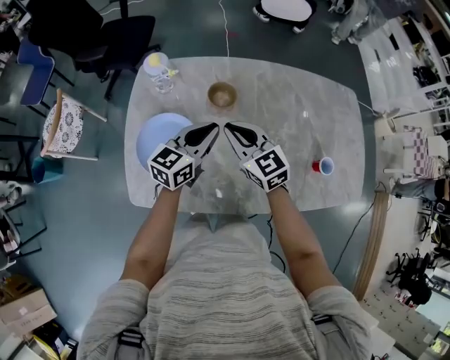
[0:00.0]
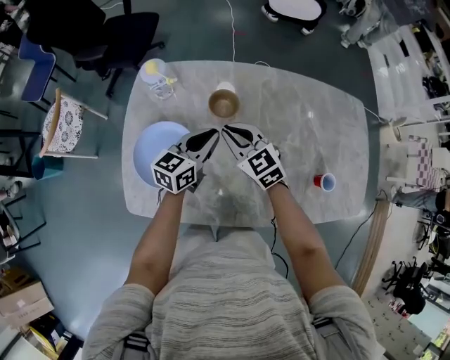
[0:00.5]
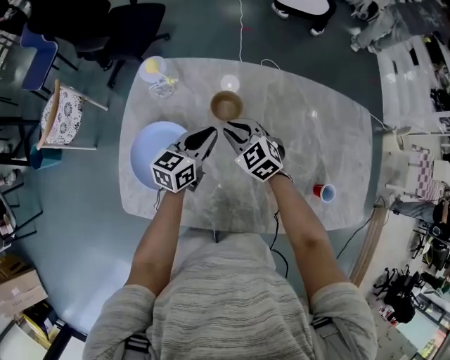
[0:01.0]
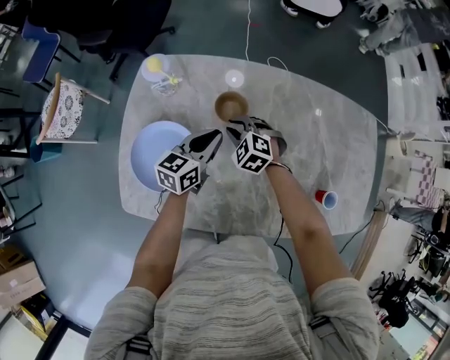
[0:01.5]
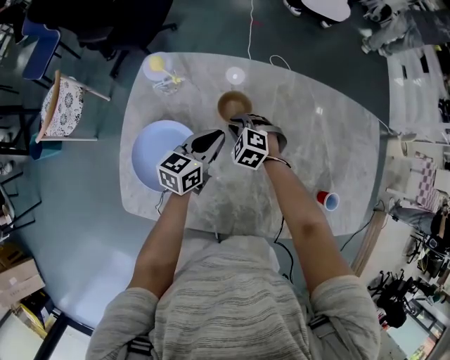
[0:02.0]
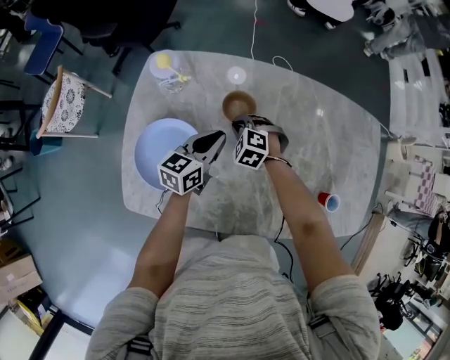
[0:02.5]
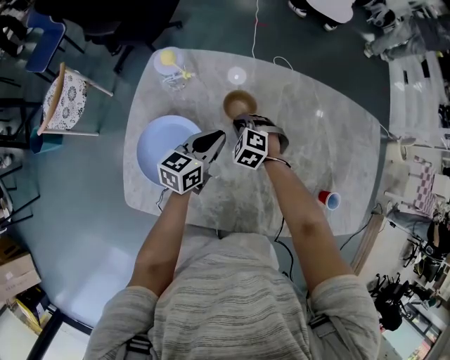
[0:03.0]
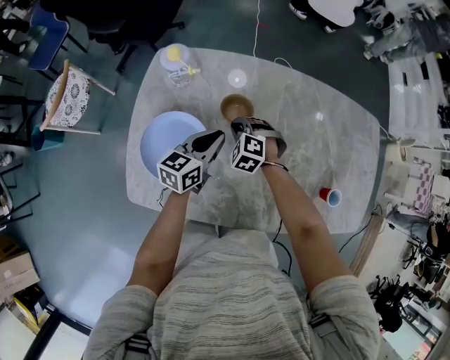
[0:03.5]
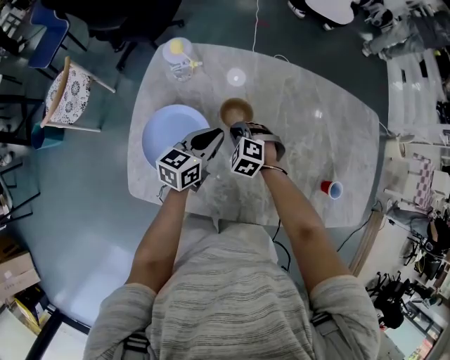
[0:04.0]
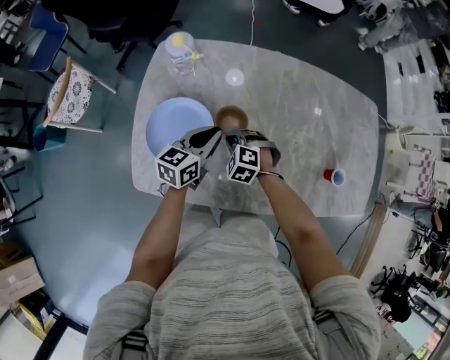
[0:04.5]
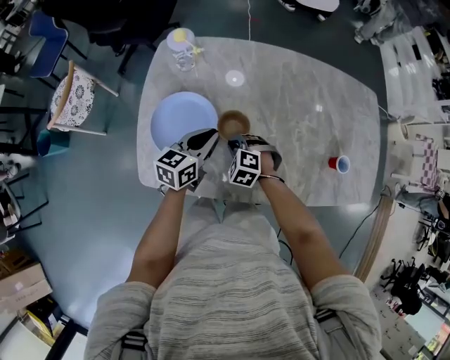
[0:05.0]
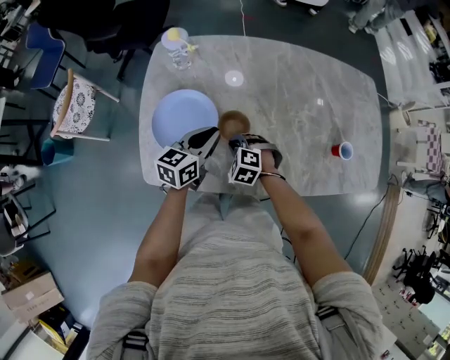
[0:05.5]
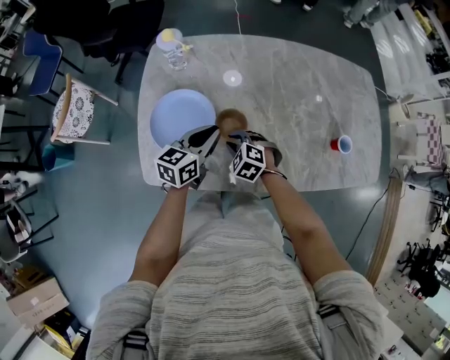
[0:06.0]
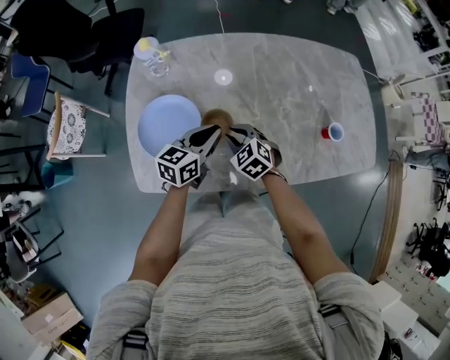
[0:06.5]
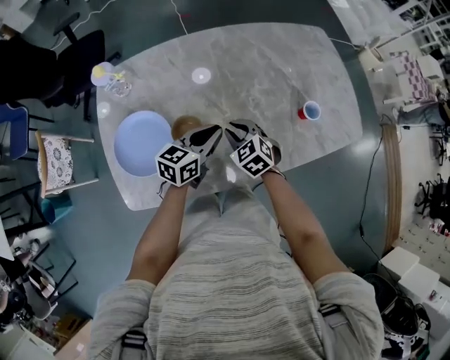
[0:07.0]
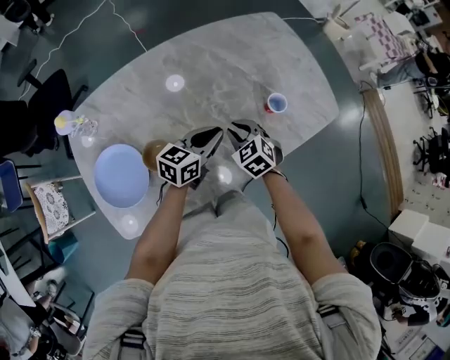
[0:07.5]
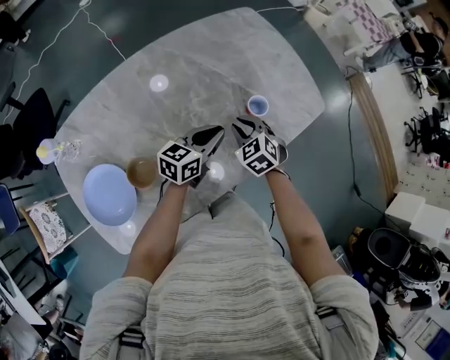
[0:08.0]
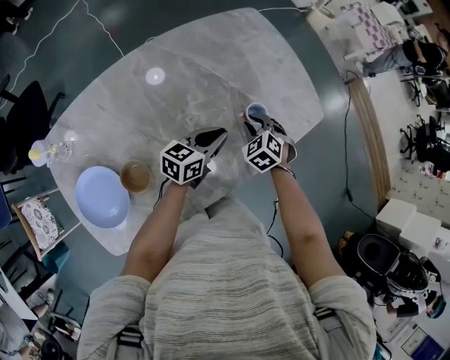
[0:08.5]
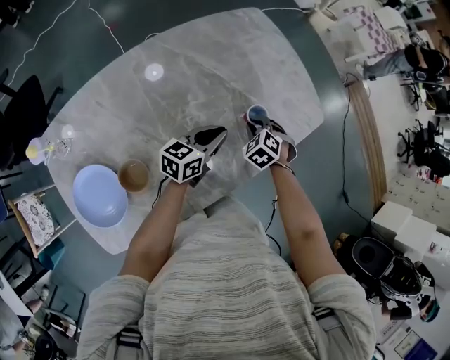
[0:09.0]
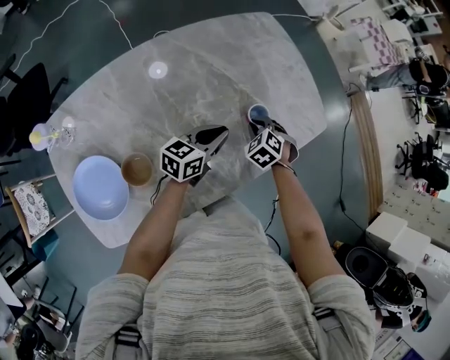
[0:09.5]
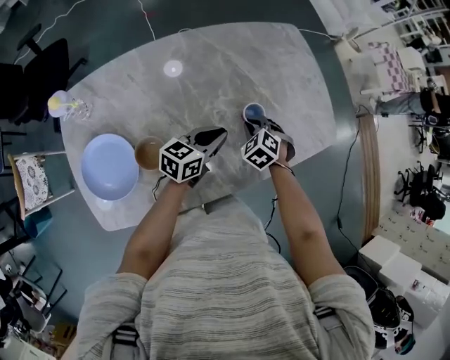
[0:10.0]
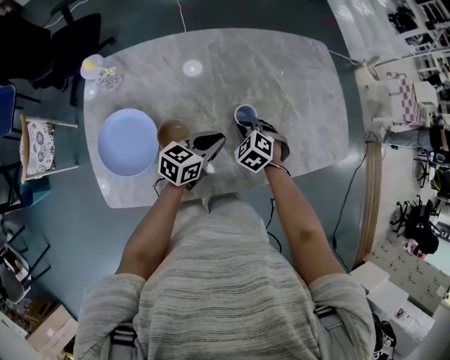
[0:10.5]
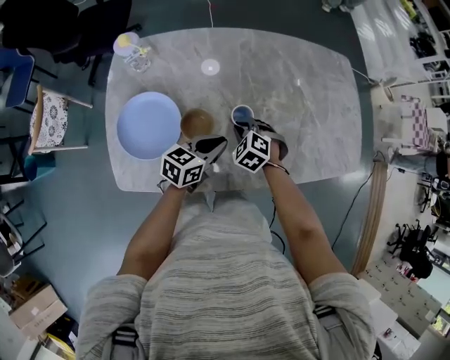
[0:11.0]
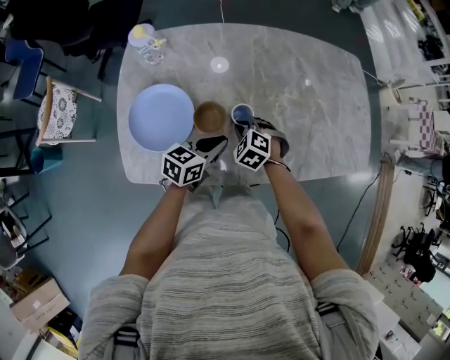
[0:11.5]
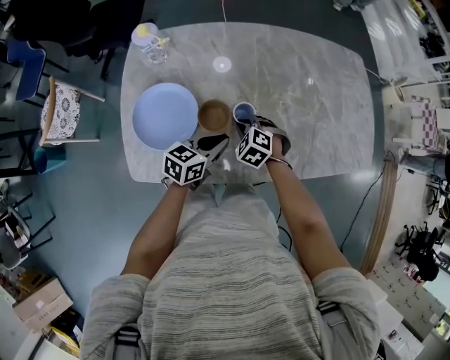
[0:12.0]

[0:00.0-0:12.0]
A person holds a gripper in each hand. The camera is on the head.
0:00.0 to 0:02.0: The left gripper heads downward and forward, covering approximately 15 cm. Meanwhile the right gripper moves downward and forward, about 25 cm, and tips its fingers downward by some 40 degrees.
0:02.0 to 0:04.0: The two grippers go some 5 cm backward.
0:04.0 to 0:06.0: The grippers both shift backward by some 10 cm.
0:06.0 to 0:08.0: The left gripper moves about 35 cm, and changes its angle by approximately 40 degrees. Meanwhile the right gripper moves about 35 cm, and rolls clockwise, seen from behind, by roughly 40 degrees.
0:08.0 to 0:10.0: The right gripper turns by some 20 degrees.
0:10.0 to 0:12.0: The two grippers go about 25 cm to the left and backward. The right gripper rotates roughly 30 degrees.

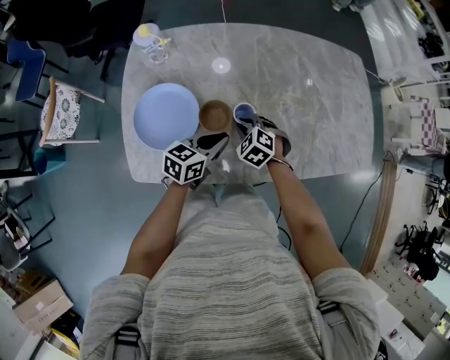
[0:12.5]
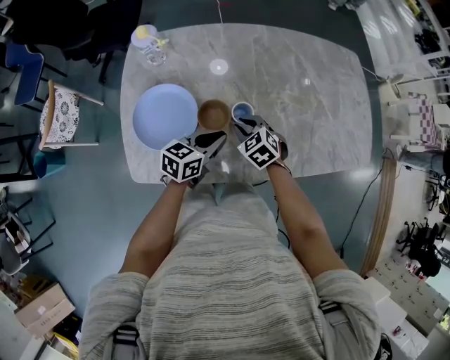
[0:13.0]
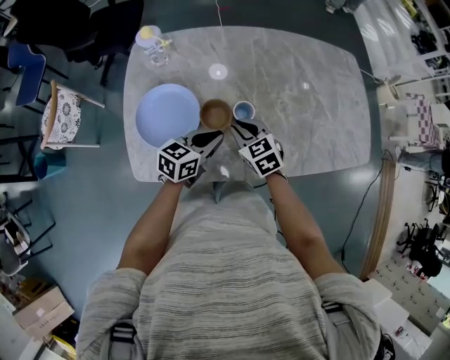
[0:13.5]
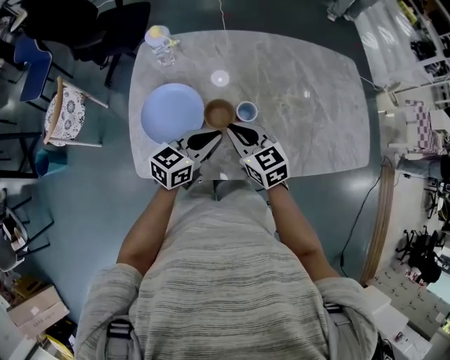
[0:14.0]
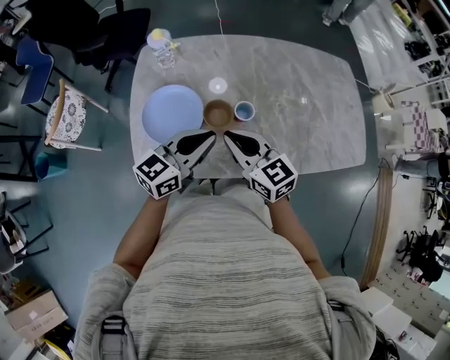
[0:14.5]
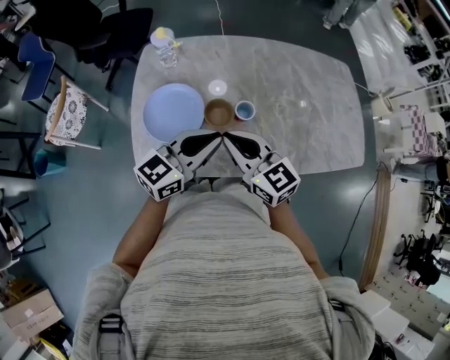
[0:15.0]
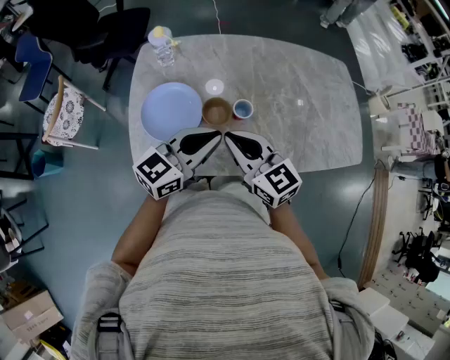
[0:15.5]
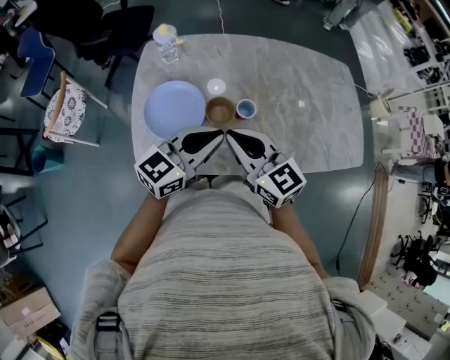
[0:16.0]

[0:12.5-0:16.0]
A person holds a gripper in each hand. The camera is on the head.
0:12.5 to 0:14.5: Both grippers move upward and backward, approximately 20 cm. The right gripper angles its fingers upward, by approximately 40 degrees. Meanwhile the left gripper changes its angle by about 20 degrees.
0:14.5 to 0:16.0: The right gripper ends up about 5 cm from where it was.

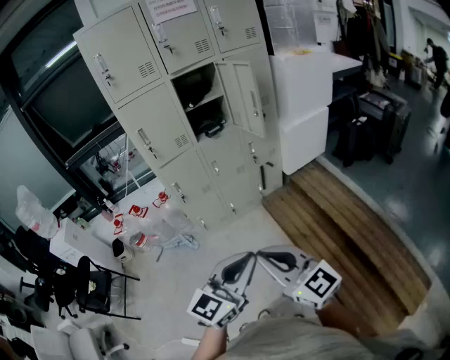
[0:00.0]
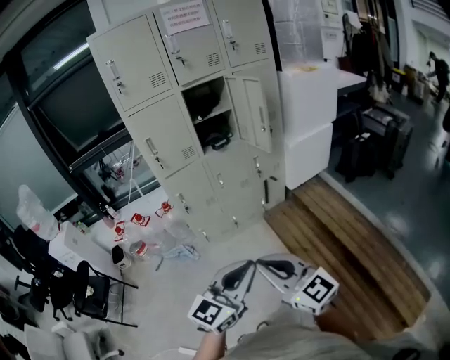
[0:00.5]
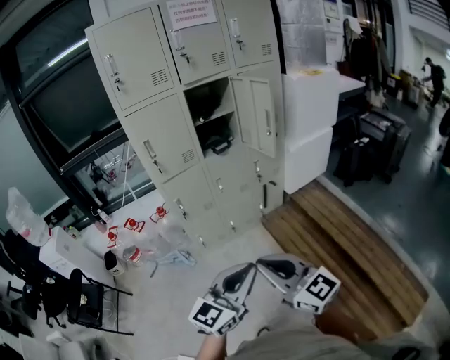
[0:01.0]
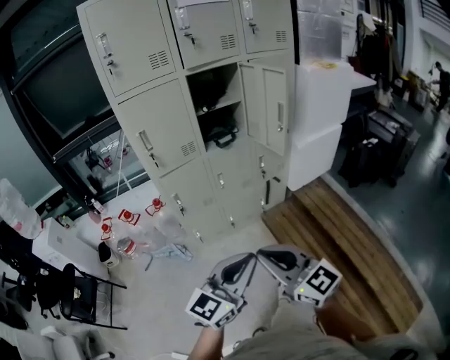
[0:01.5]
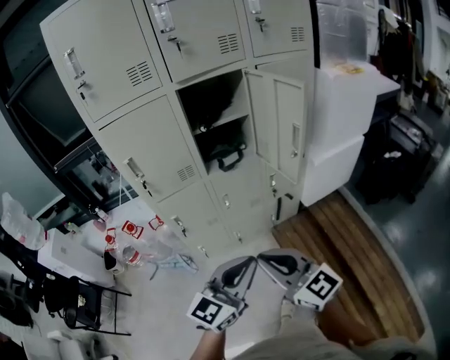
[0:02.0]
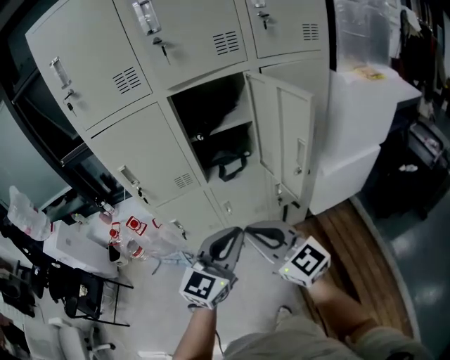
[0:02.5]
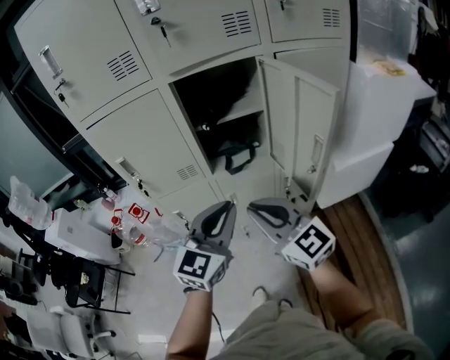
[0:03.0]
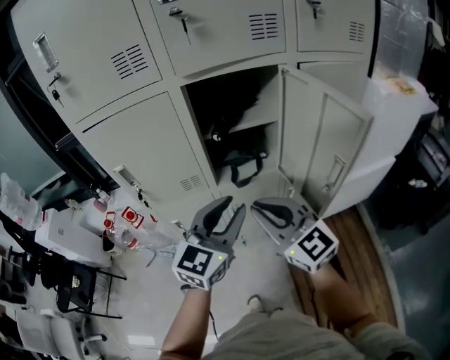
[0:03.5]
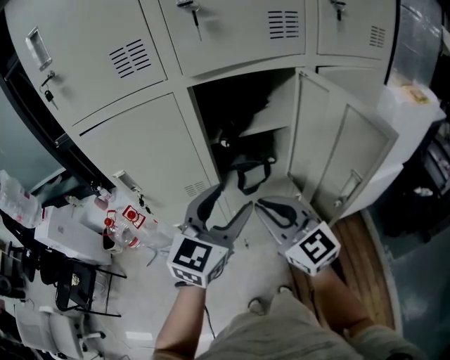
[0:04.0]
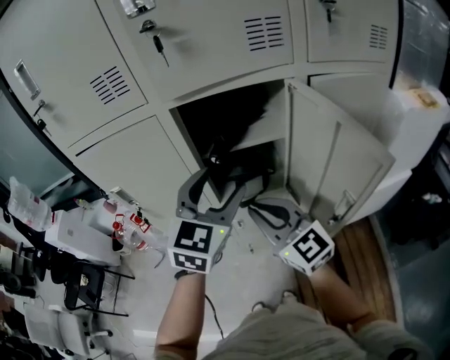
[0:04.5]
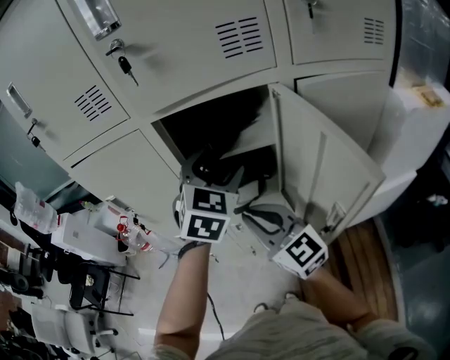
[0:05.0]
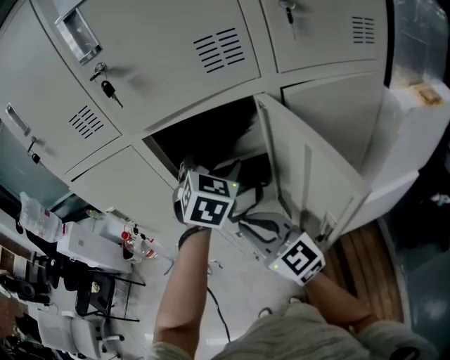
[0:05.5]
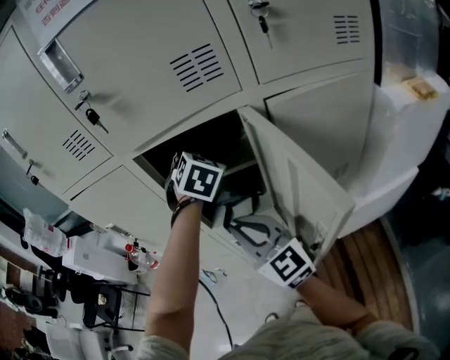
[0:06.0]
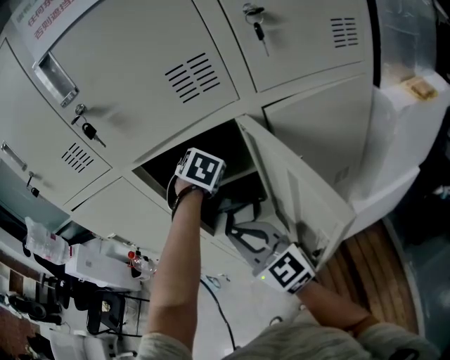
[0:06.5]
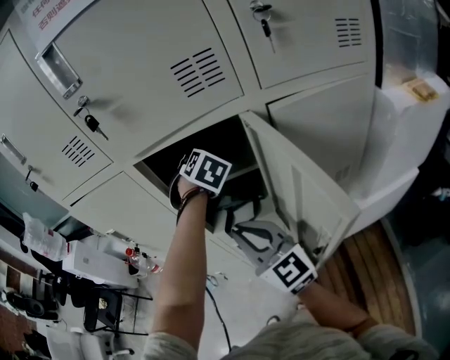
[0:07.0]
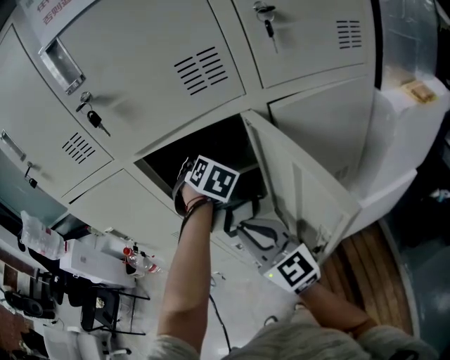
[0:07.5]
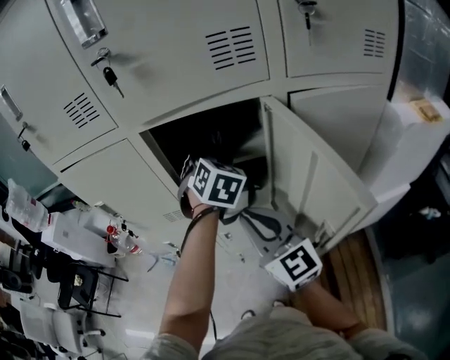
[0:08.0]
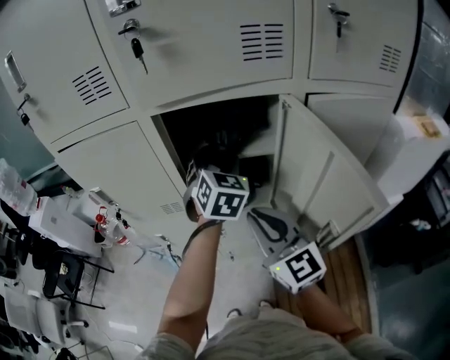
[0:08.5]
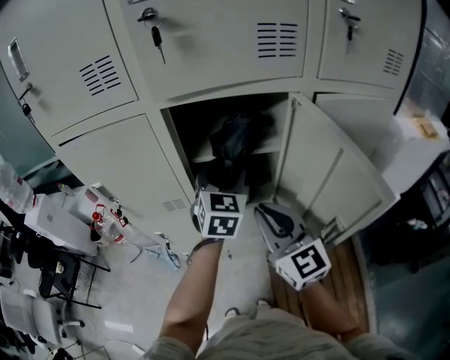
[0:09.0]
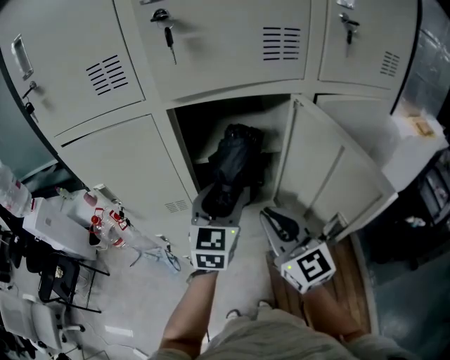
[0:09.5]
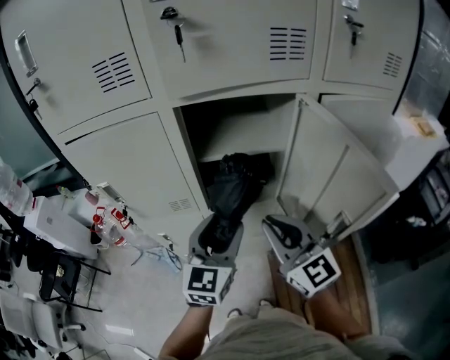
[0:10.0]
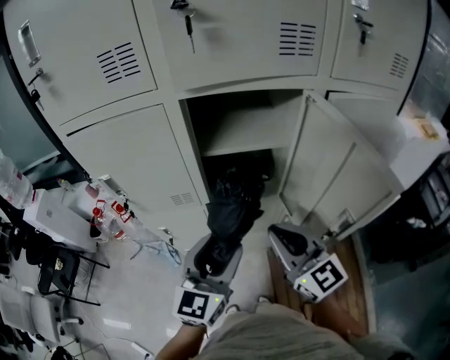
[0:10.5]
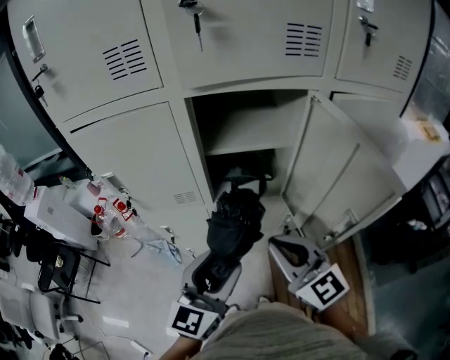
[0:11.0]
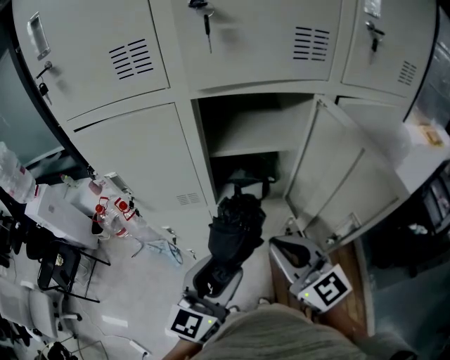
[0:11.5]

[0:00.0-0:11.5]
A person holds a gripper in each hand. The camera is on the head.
0:00.0 to 0:02.0: The grippers both shift forward by approximately 30 cm.
0:02.0 to 0:04.0: Both grippers travel together forward, about 30 cm. The left gripper turns by roughly 20 degrees, and opens.
0:04.0 to 0:06.0: The left gripper is displaced forward and to the right by some 25 cm, and rotates approximately 50 degrees. Meanwhile the right gripper is displaced to the right and forward by approximately 10 cm.
0:06.0 to 0:07.5: The grippers stay close to where they were, moving slightly.
0:07.5 to 0:09.5: The left gripper shifts some 15 cm backward, and angles its fingers upward, by some 30 degrees.
0:09.5 to 0:11.5: The right gripper shifts some 5 cm backward; the left gripper moves backward, some 20 cm.
